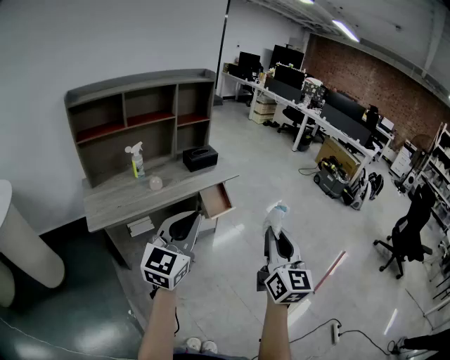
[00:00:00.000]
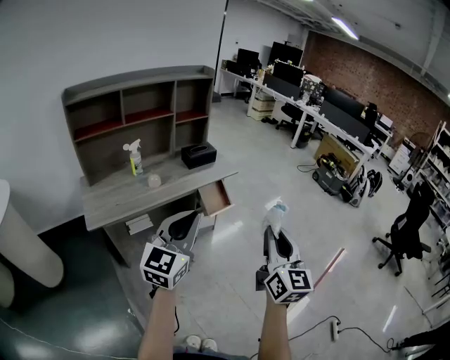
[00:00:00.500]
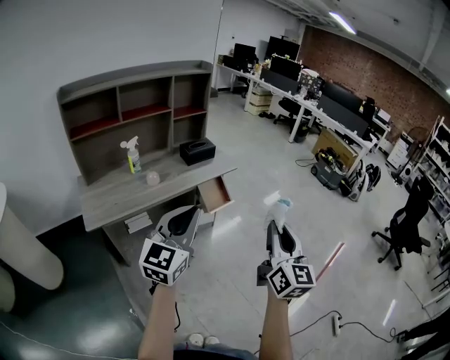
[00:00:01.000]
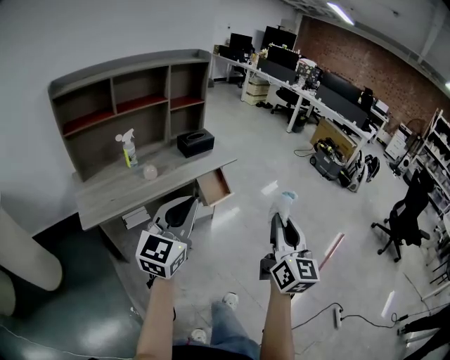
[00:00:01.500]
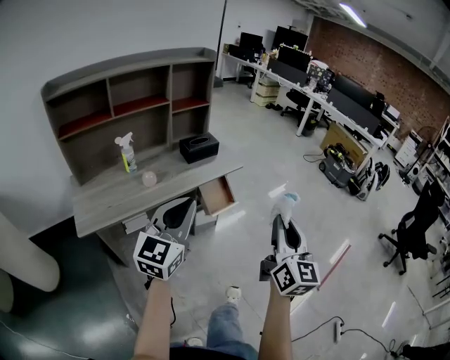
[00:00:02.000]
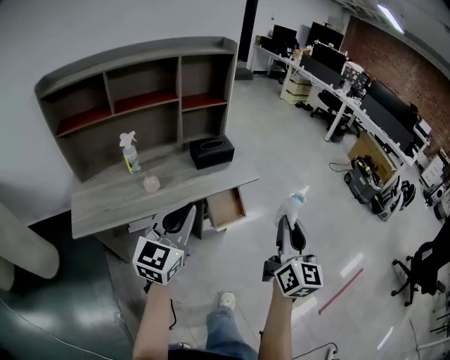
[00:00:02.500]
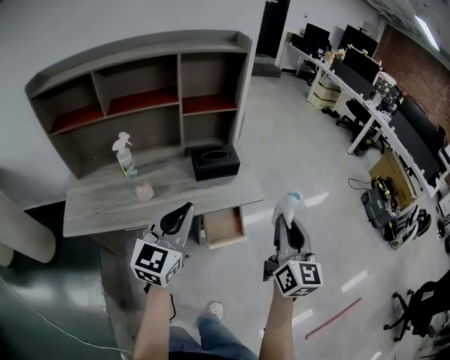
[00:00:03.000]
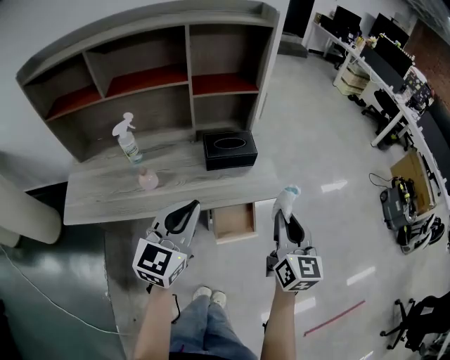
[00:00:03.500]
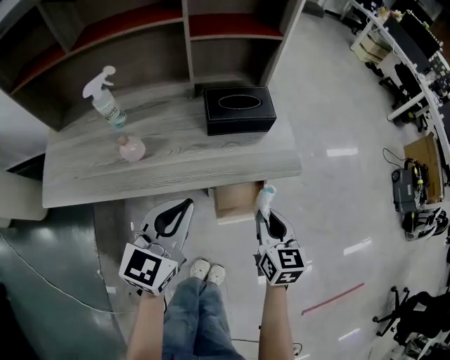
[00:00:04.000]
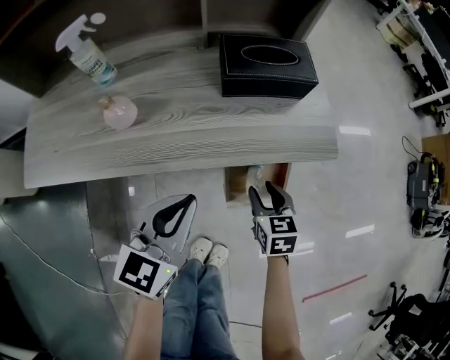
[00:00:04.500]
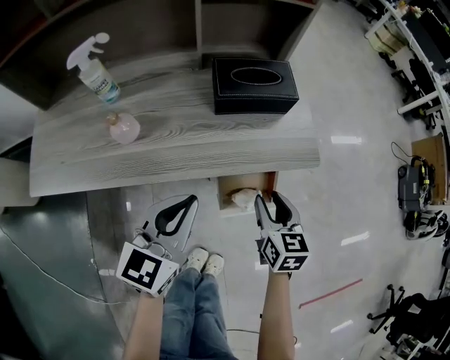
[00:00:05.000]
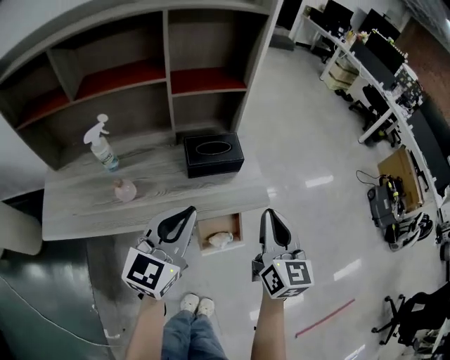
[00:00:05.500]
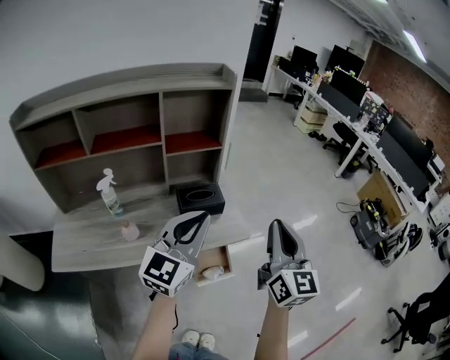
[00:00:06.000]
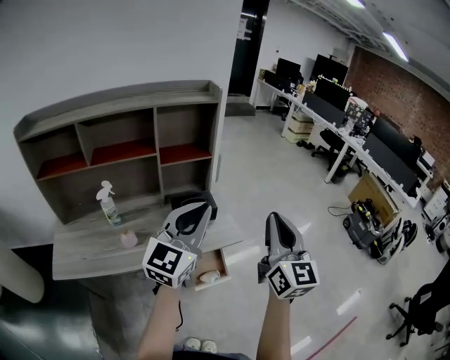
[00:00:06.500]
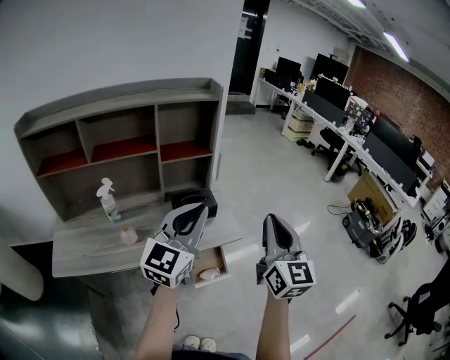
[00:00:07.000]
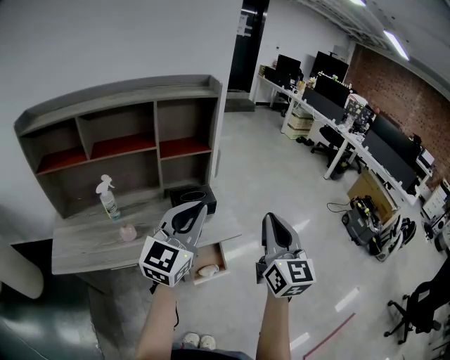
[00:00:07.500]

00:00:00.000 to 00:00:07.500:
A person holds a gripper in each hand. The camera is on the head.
00:00:00.000 to 00:00:02.000: The two grippers go roughly 10 cm forward.
00:00:02.000 to 00:00:04.000: The right gripper changes place by approximately 50 cm, and tilts its fingers about 40 degrees downward, while the left gripper moves some 40 cm, and turns by approximately 30 degrees.
00:00:04.000 to 00:00:05.500: The right gripper is displaced upward by some 20 cm, swivels roughly 20 degrees, and opens, then closes again; the left gripper moves upward, some 10 cm.
00:00:05.500 to 00:00:07.500: The left gripper is displaced upward by approximately 15 cm. The right gripper moves upward and backward, some 20 cm.

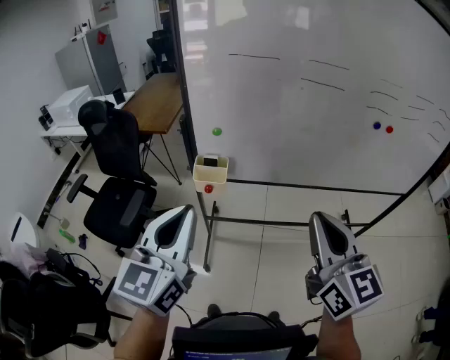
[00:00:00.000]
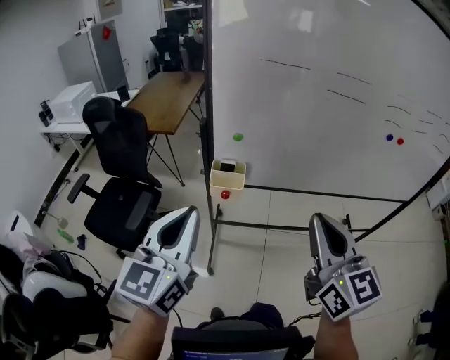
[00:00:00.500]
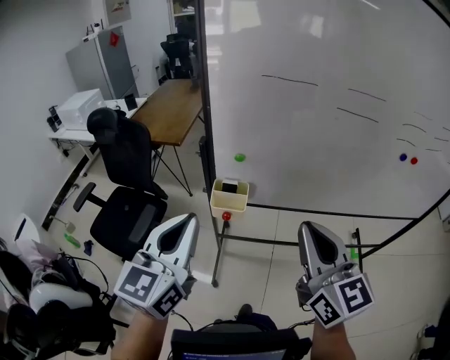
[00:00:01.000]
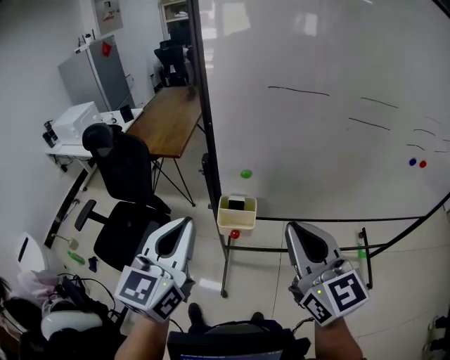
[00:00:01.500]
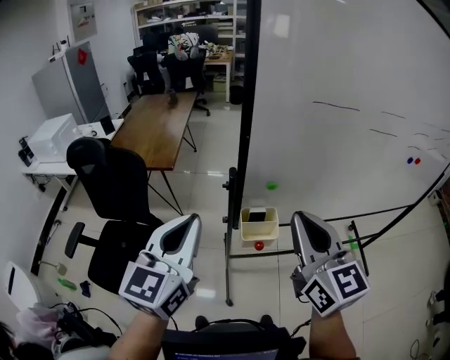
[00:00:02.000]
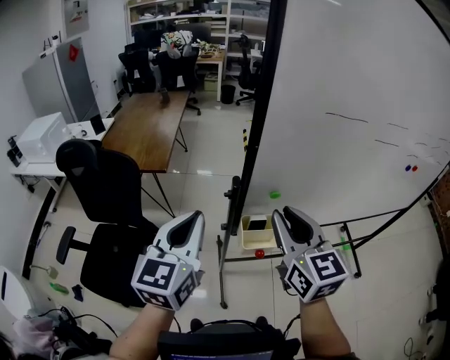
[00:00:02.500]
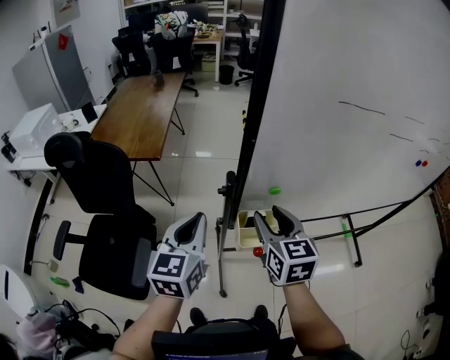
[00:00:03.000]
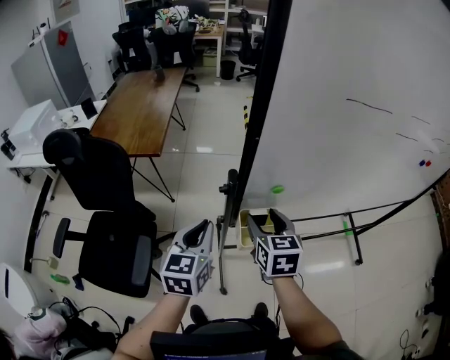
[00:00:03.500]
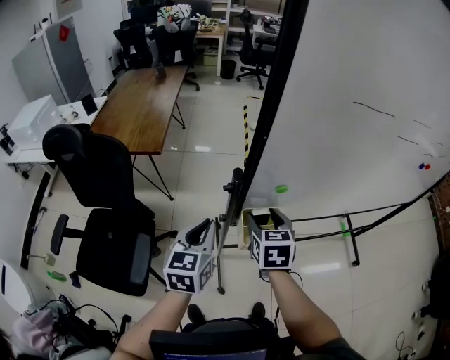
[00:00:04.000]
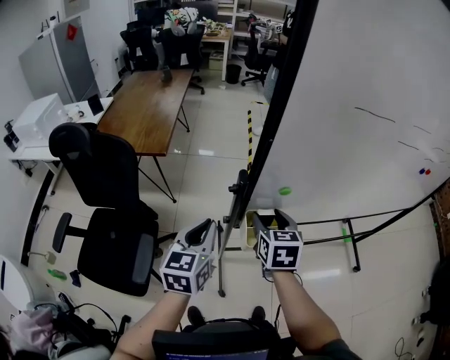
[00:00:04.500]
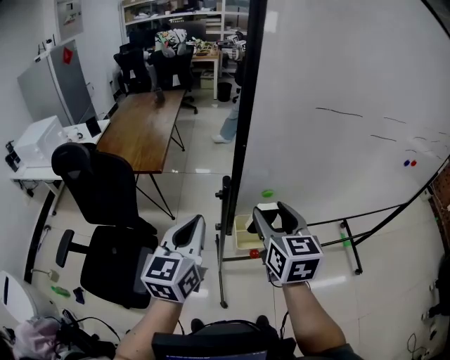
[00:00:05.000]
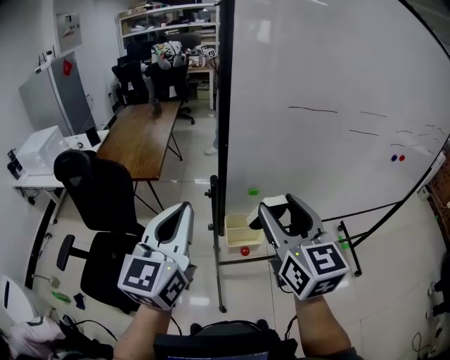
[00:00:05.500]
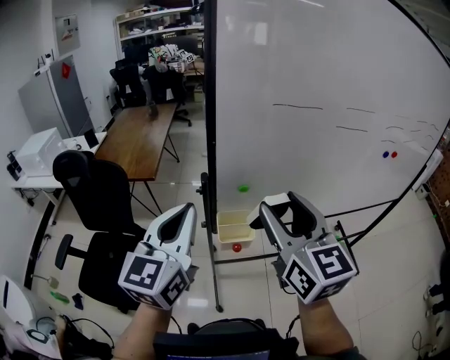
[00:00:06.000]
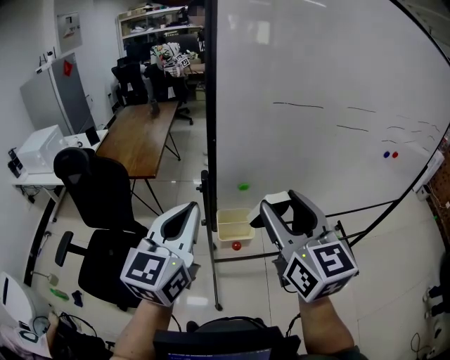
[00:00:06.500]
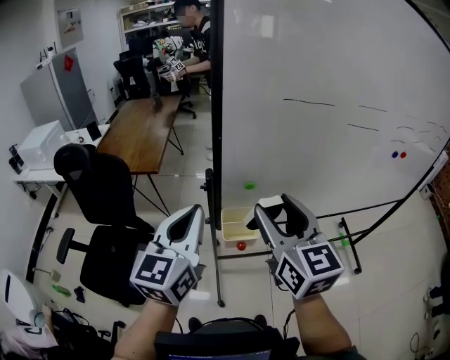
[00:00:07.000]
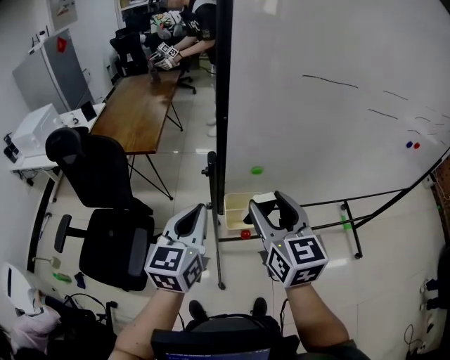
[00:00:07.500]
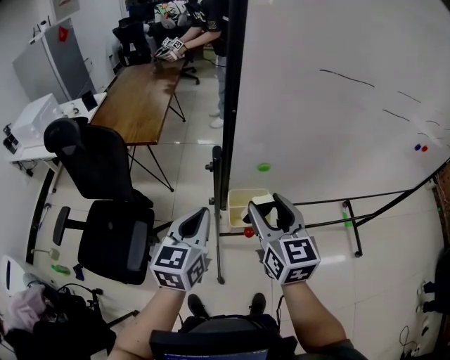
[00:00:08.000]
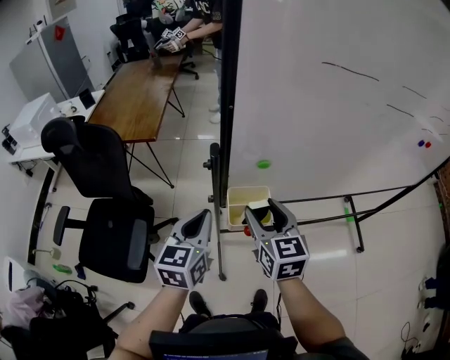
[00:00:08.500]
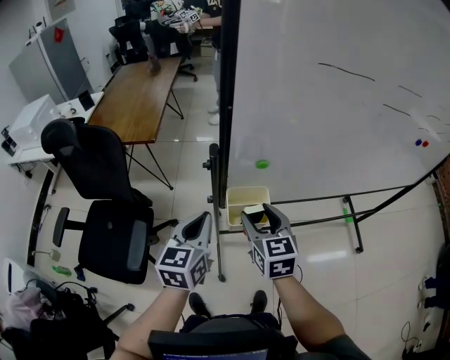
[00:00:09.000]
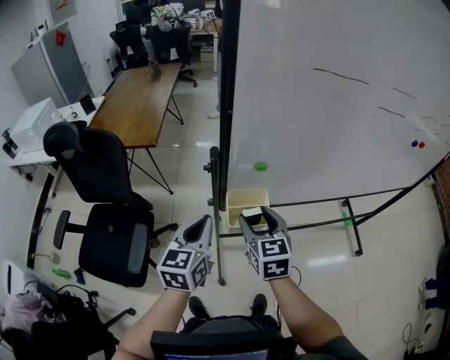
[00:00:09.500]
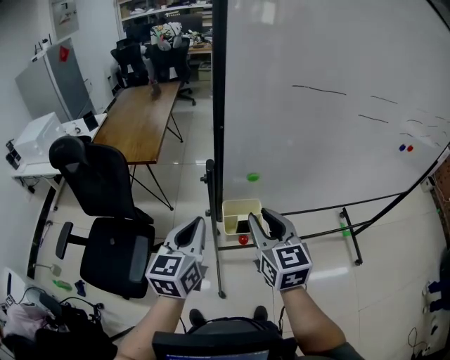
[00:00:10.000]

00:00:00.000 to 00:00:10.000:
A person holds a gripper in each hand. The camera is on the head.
00:00:00.000 to 00:00:02.000: The right gripper moves to the left and forward, approximately 35 cm; the left gripper is displaced forward and to the left by some 30 cm.
00:00:02.000 to 00:00:04.000: The grippers both shift downward and forward by about 25 cm. The right gripper angles its fingers downward, by about 40 degrees, and opens up; the left gripper rotates approximately 20 degrees.
00:00:04.000 to 00:00:06.000: Both grippers travel together upward and backward, approximately 30 cm. The left gripper changes its angle by some 20 degrees. Meanwhile the right gripper tilts its fingers about 40 degrees upward.
00:00:06.000 to 00:00:08.000: The right gripper goes roughly 20 cm downward and forward. The left gripper is displaced downward by about 20 cm.
00:00:08.000 to 00:00:10.000: The right gripper reaches roughly 10 cm downward, then returns, and closes its fingers.

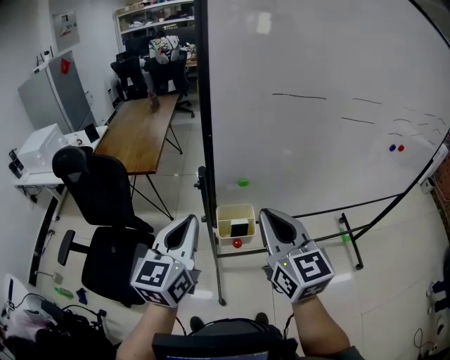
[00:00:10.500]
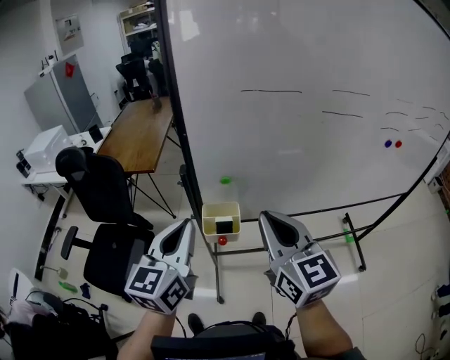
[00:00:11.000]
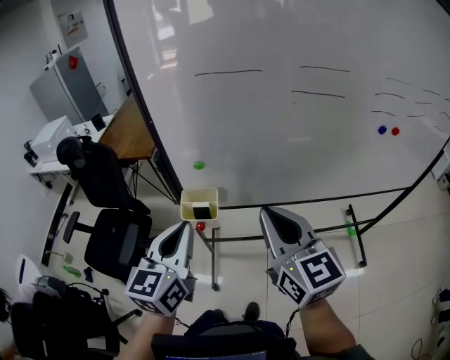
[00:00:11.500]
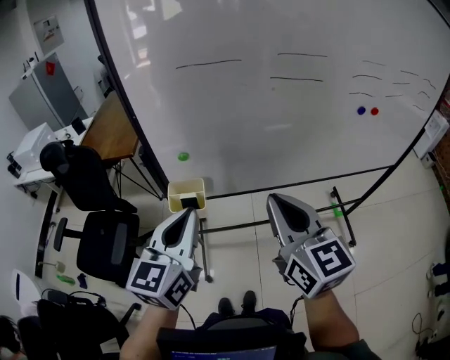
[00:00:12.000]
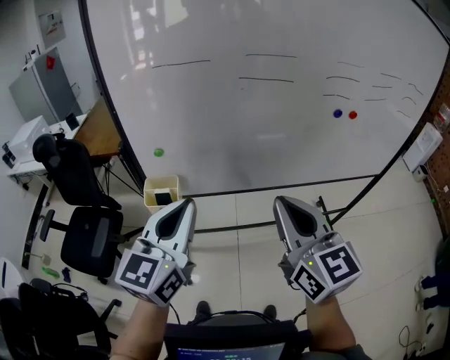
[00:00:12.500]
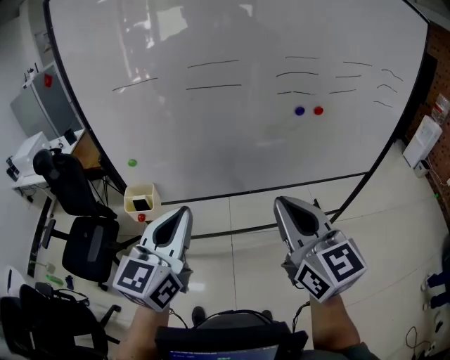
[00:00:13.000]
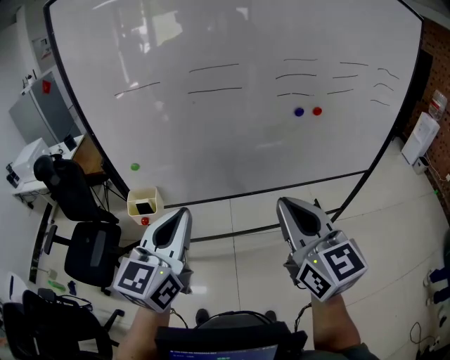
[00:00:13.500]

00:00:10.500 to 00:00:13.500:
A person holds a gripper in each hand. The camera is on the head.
00:00:10.500 to 00:00:12.000: Both grippers travel together to the right, about 20 cm.
00:00:12.000 to 00:00:13.500: Both grippers travel together to the right, about 20 cm.

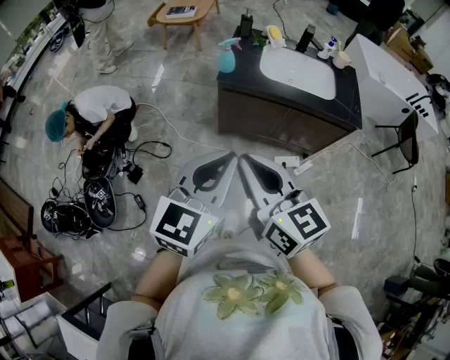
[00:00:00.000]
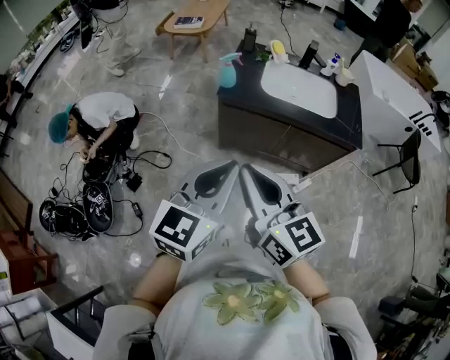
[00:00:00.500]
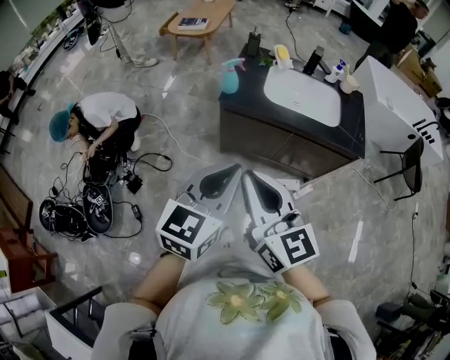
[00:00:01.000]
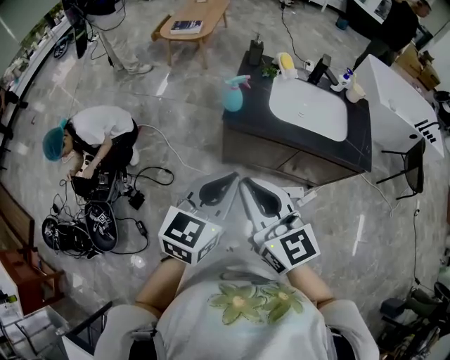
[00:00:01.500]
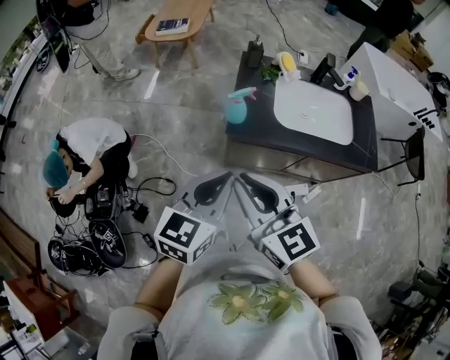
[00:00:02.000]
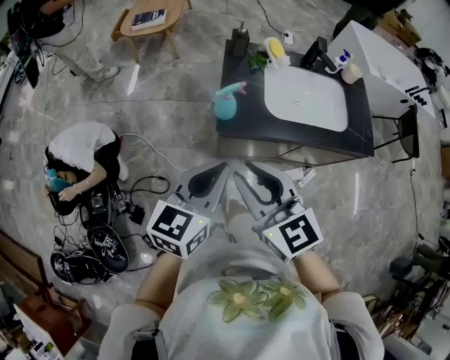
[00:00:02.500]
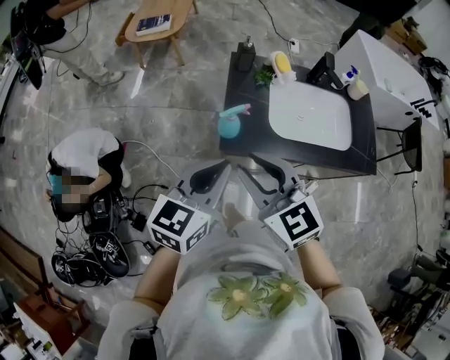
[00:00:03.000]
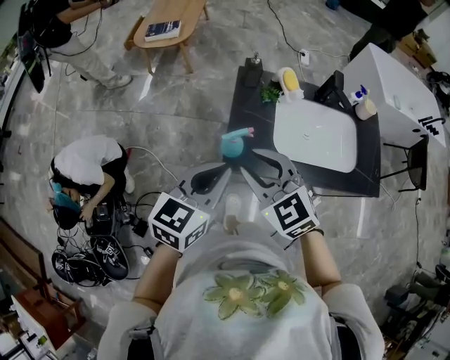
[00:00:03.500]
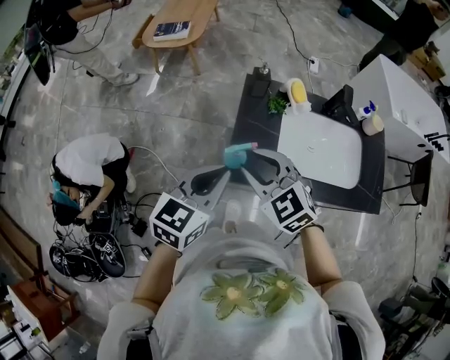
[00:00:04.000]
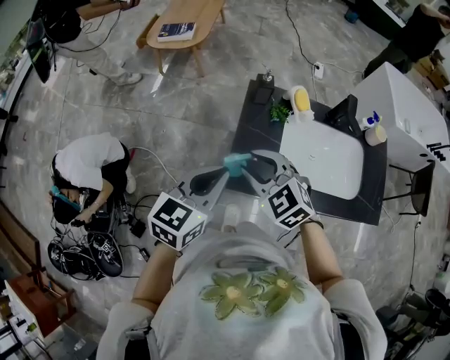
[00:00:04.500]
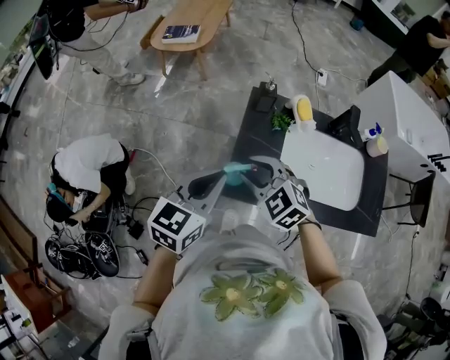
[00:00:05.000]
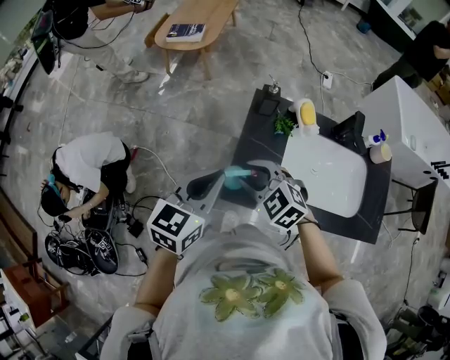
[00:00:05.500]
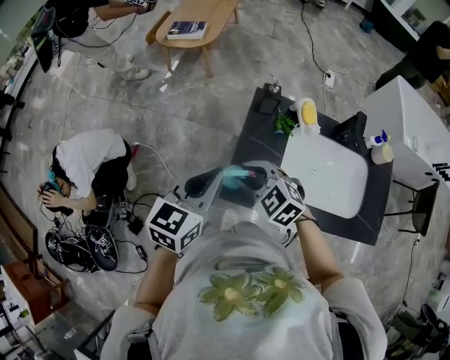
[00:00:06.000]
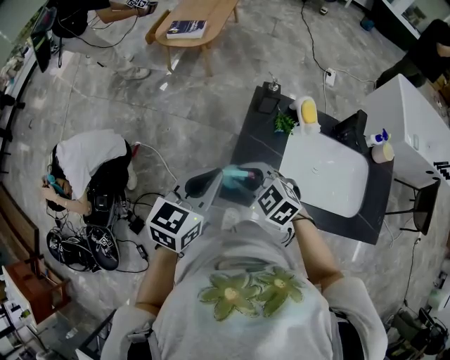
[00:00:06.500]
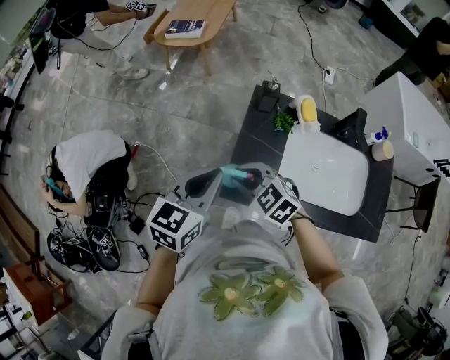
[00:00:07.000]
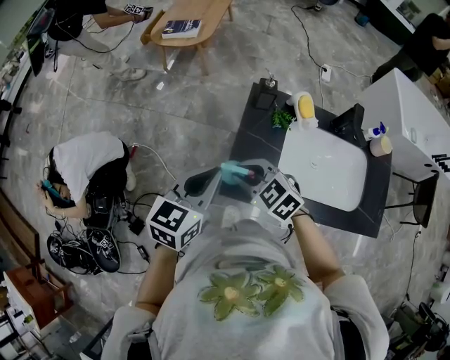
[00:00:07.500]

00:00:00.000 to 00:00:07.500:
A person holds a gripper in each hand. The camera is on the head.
00:00:00.000 to 00:00:02.000: The two grippers go approximately 25 cm forward.
00:00:02.000 to 00:00:04.000: The two grippers go about 20 cm forward. The right gripper turns by roughly 40 degrees, and opens its fingers.
00:00:04.000 to 00:00:05.500: The right gripper goes approximately 10 cm downward. The left gripper shifts about 5 cm forward.
00:00:05.500 to 00:00:07.500: The grippers move only a little.
